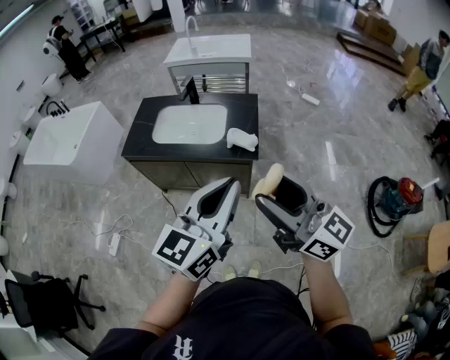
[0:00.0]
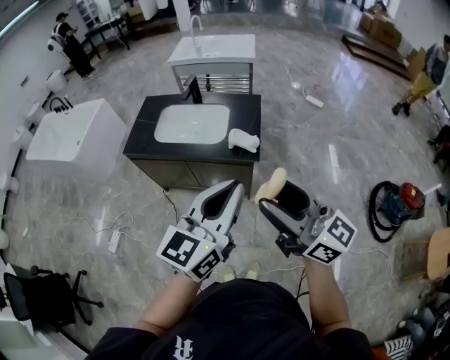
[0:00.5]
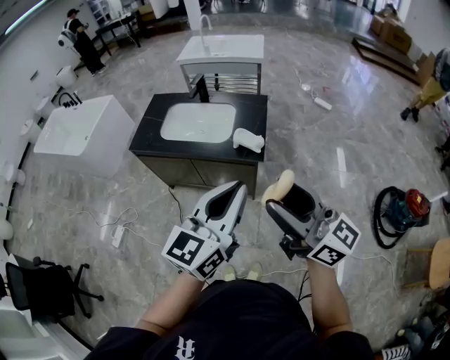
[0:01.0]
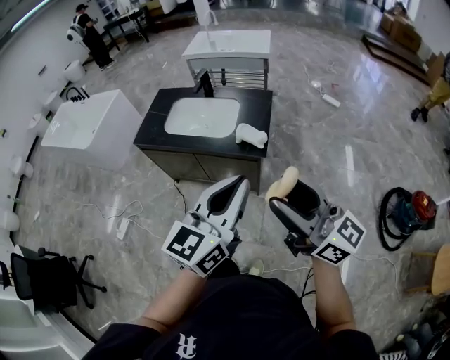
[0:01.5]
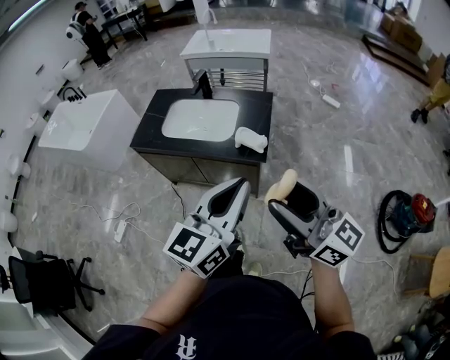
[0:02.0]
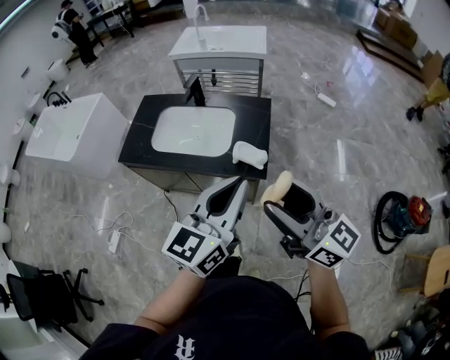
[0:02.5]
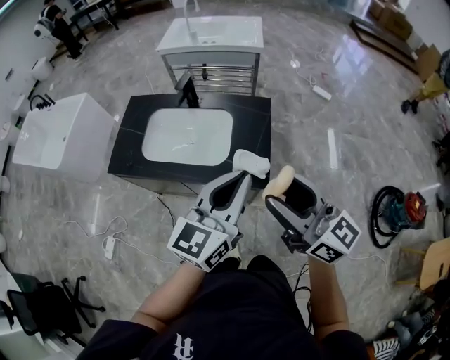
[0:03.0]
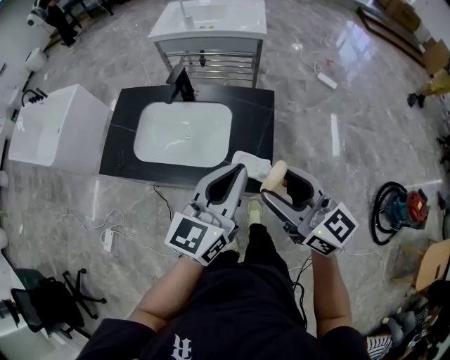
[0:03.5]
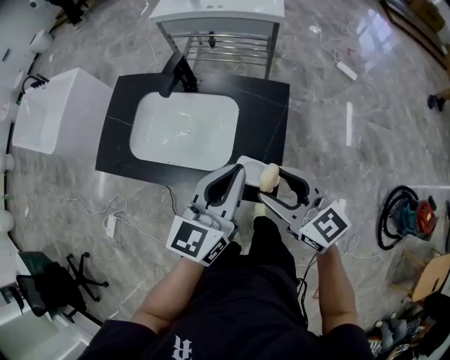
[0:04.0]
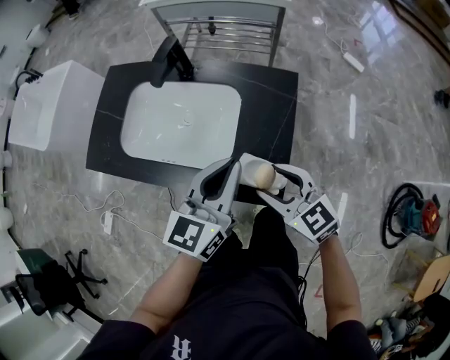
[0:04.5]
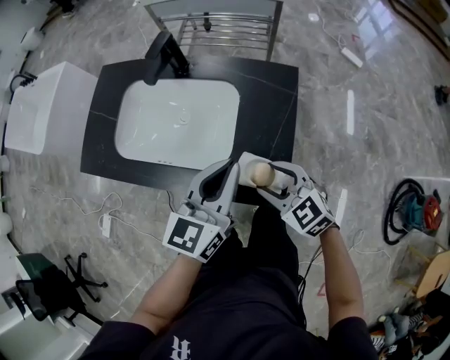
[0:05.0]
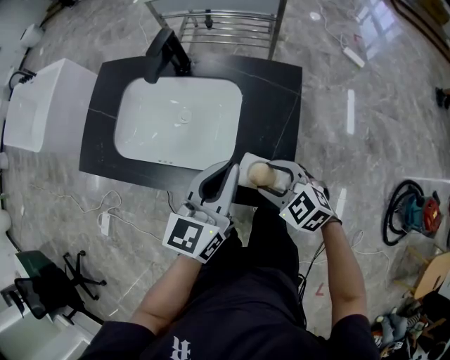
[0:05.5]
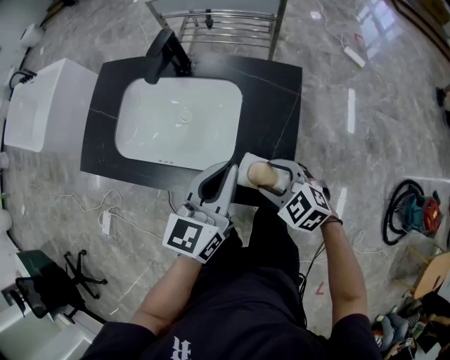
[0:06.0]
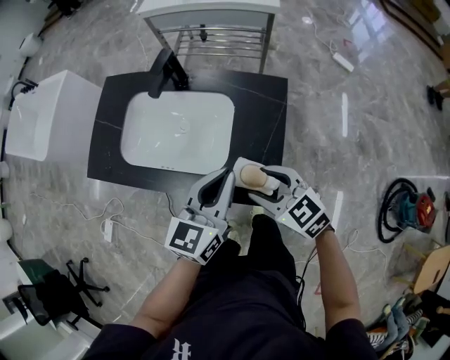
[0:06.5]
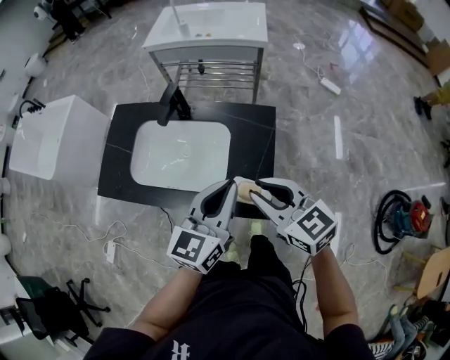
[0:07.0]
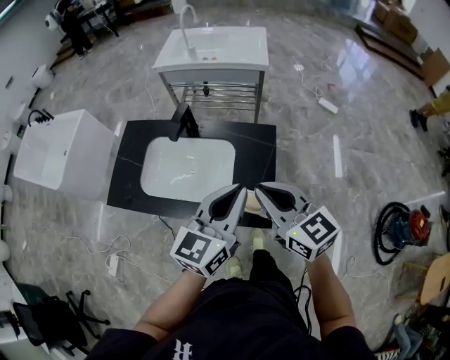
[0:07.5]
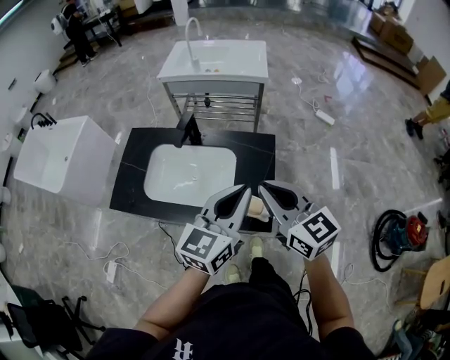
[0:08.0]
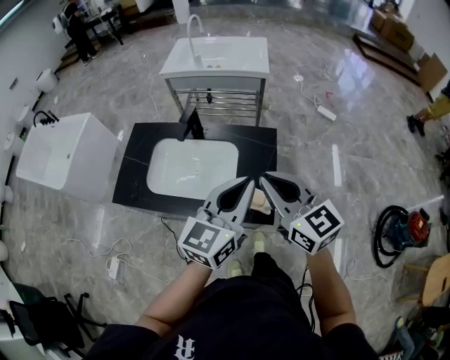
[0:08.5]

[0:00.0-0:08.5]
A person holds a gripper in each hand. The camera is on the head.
0:00.0 to 0:02.0: The grippers both shift to the right by about 5 cm.
0:02.0 to 0:04.0: Both grippers move forward and downward, roughly 40 cm. The right gripper changes its angle by approximately 30 degrees.
0:04.0 to 0:06.5: Both grippers move downward, about 10 cm. The right gripper rotates approximately 20 degrees.
0:06.5 to 0:08.5: The grippers both shift upward by approximately 20 cm. The right gripper rotates approximately 30 degrees, and closes its fingers.

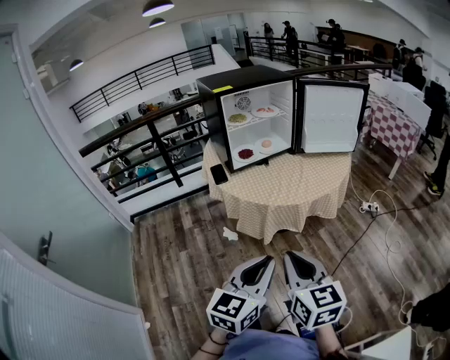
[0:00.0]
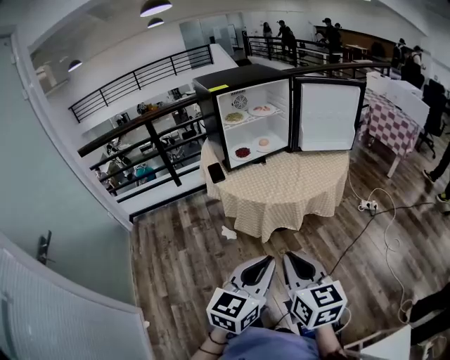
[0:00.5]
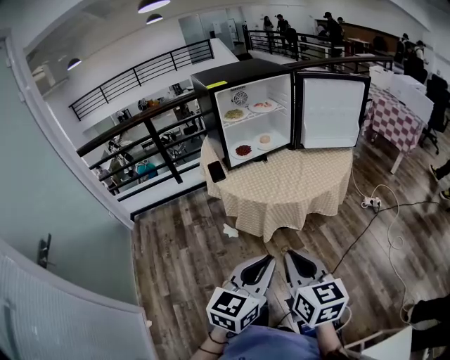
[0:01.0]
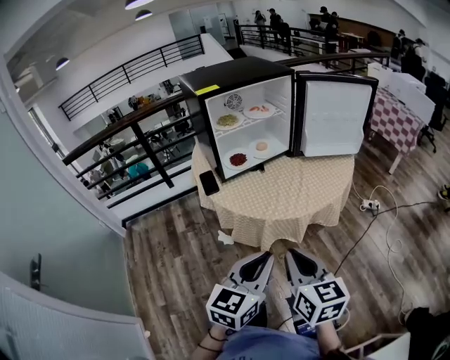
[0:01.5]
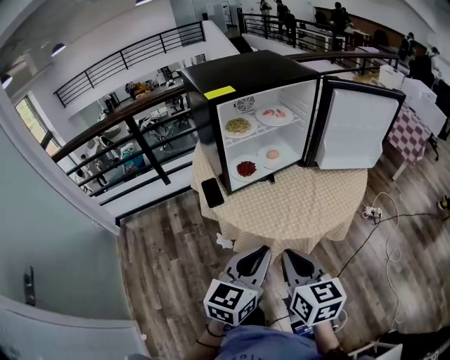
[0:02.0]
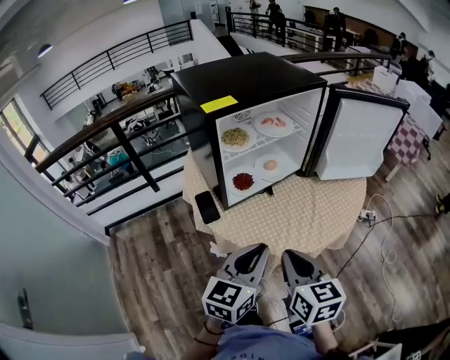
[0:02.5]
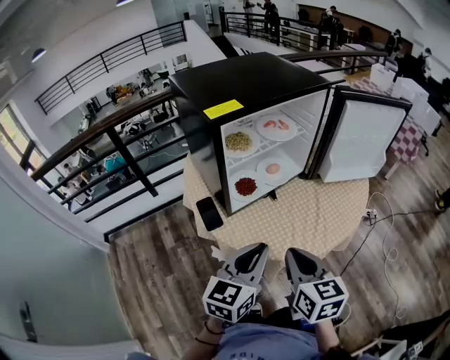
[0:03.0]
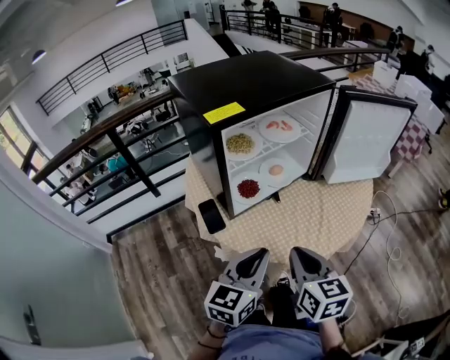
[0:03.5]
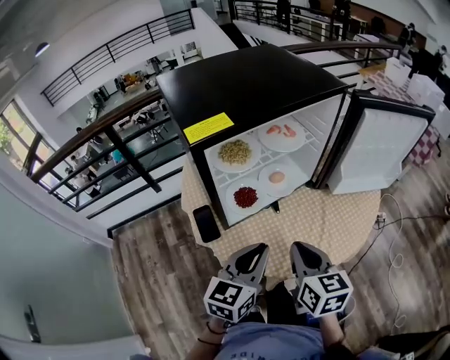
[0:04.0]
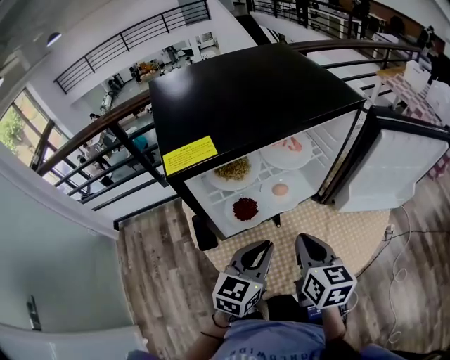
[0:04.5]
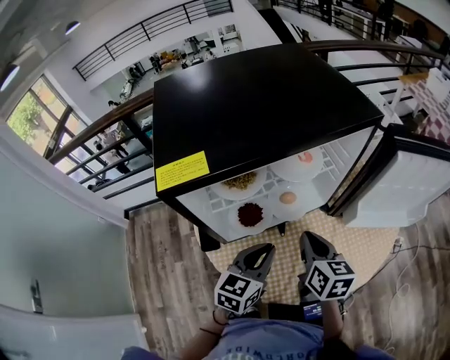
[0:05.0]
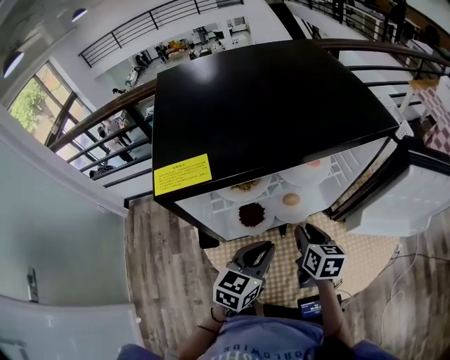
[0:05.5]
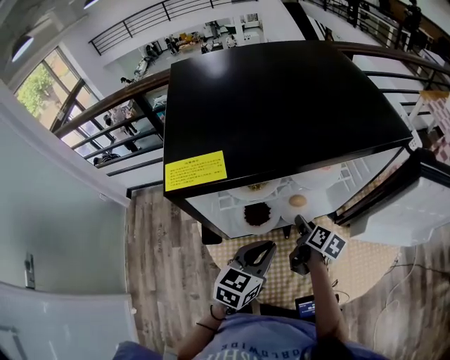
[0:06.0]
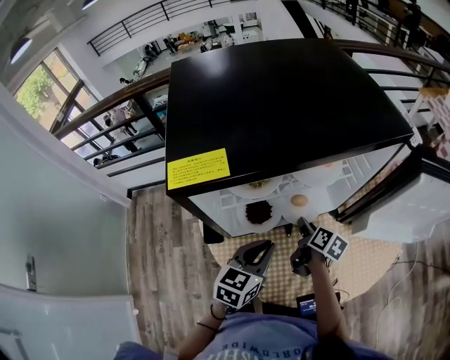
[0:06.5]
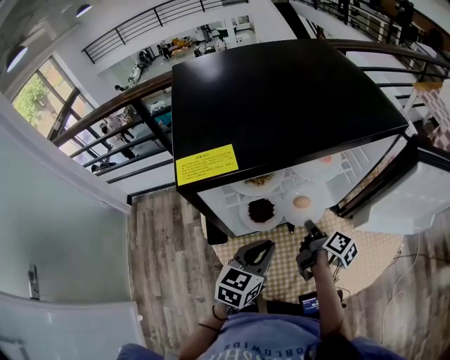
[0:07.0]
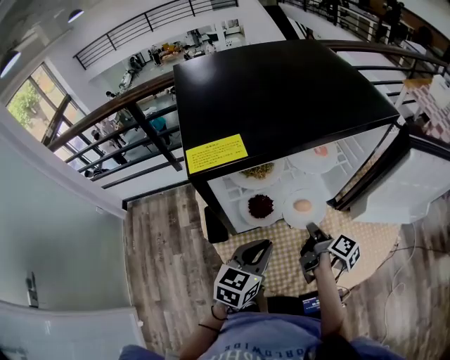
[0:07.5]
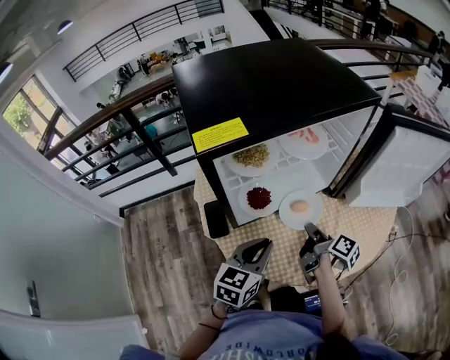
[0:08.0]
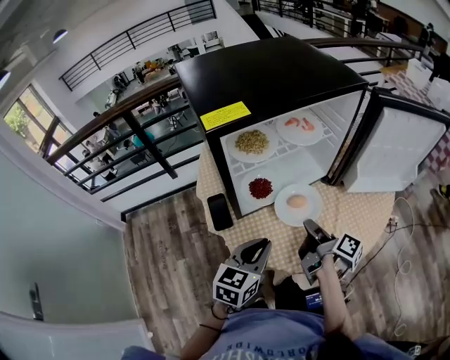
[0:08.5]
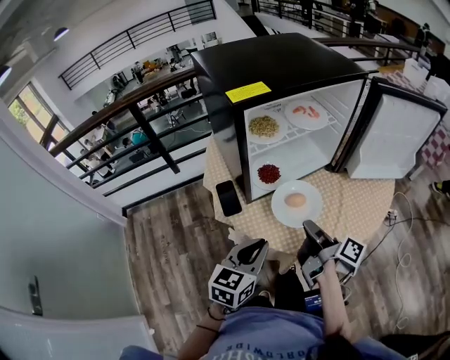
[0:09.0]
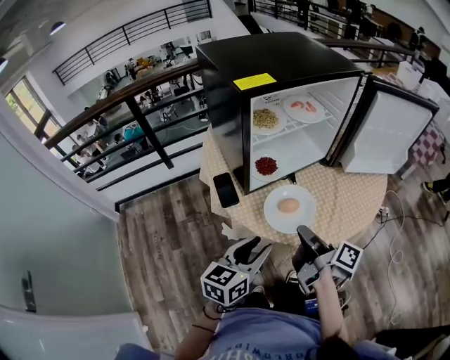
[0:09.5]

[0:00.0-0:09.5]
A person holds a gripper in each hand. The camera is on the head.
0:00.0 to 0:02.0: The grippers both shift forward by approximately 25 cm.
0:02.0 to 0:04.0: The grippers both shift forward by about 20 cm.
0:04.0 to 0:05.5: The right gripper travels forward and downward by approximately 25 cm. Meanwhile the left gripper shifts about 15 cm forward and downward.
0:05.5 to 0:07.5: The left gripper ends up roughly 5 cm from where it was; the right gripper twists about 50 degrees clockwise, seen from behind, and opens, then closes once more.
0:07.5 to 0:09.5: The left gripper goes some 20 cm backward, and opens up; the right gripper is displaced backward and upward by approximately 25 cm.

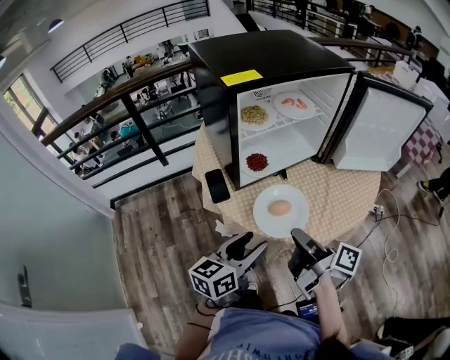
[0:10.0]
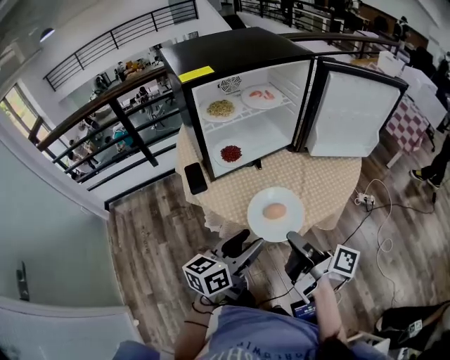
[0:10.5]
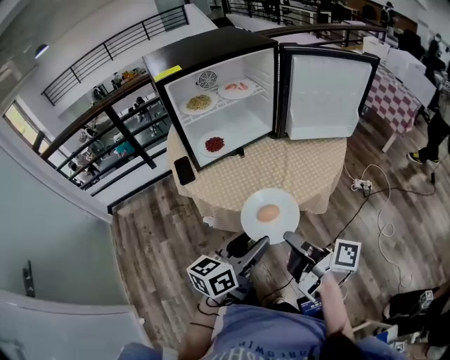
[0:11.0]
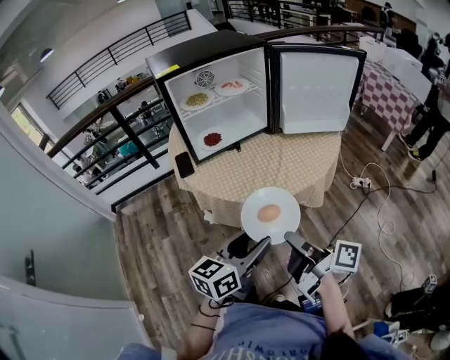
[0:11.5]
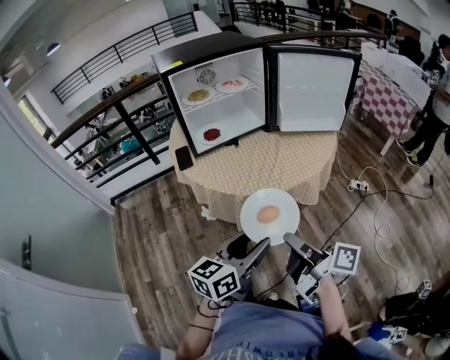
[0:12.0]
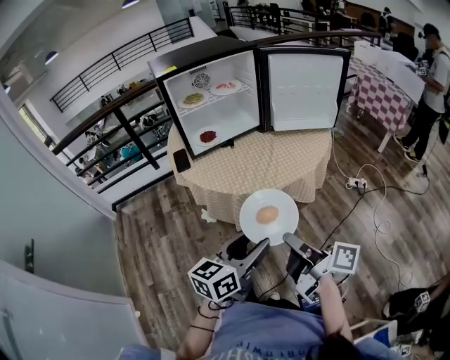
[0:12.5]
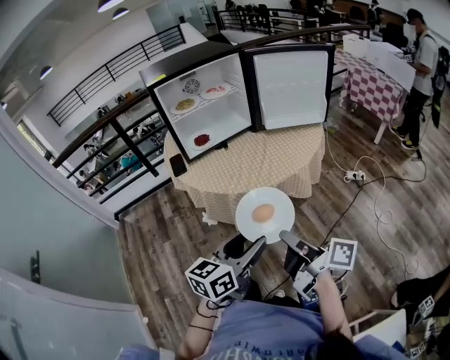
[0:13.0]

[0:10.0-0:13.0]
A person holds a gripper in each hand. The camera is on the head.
0:10.0 to 0:11.5: The right gripper shifts some 25 cm backward and to the right; the left gripper shifts approximately 25 cm to the right and backward.
0:11.5 to 0:13.0: The grippers both shift backward by roughly 10 cm.

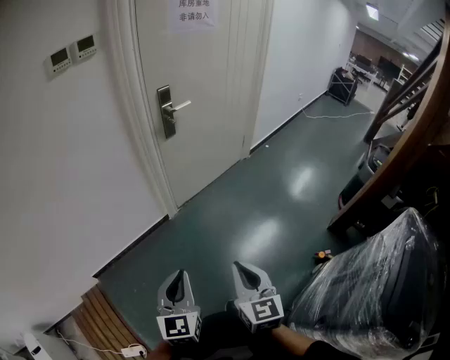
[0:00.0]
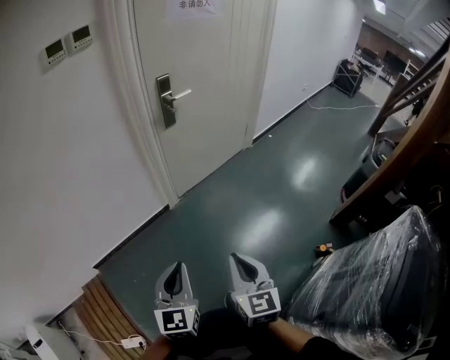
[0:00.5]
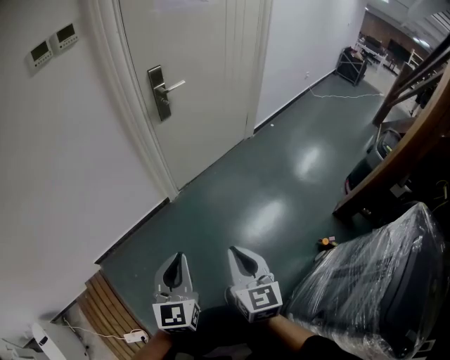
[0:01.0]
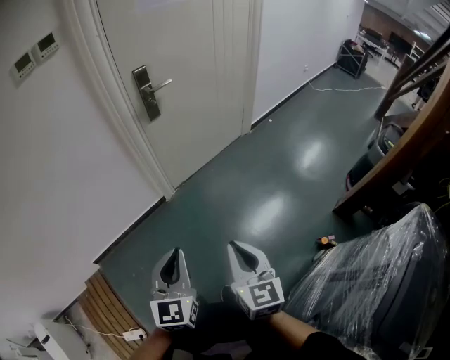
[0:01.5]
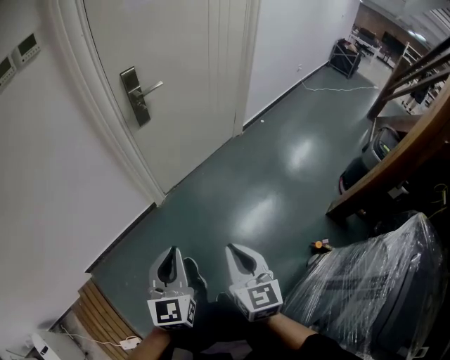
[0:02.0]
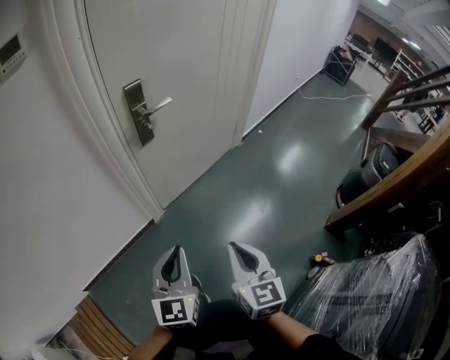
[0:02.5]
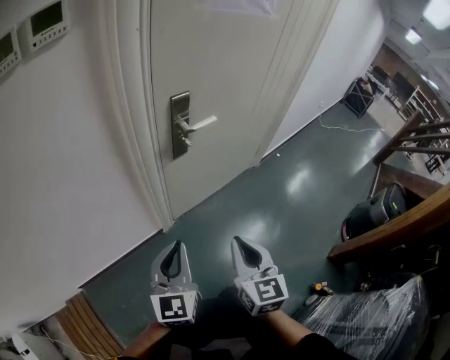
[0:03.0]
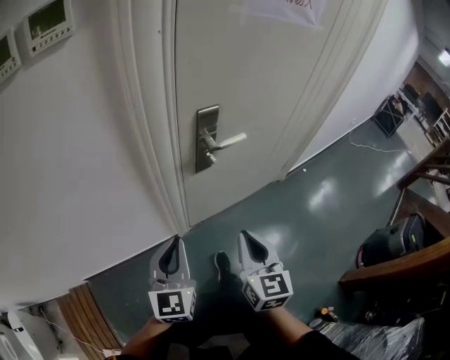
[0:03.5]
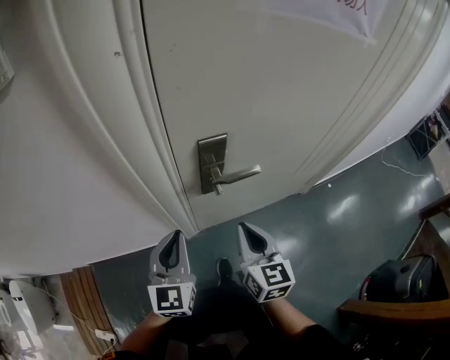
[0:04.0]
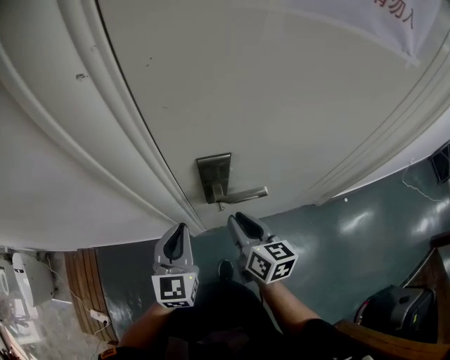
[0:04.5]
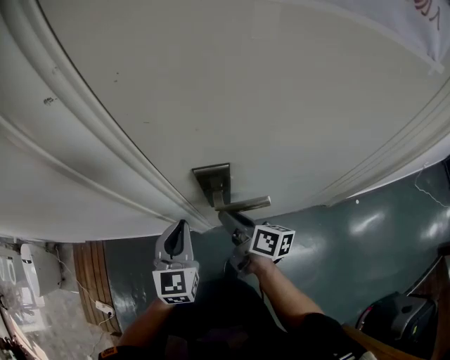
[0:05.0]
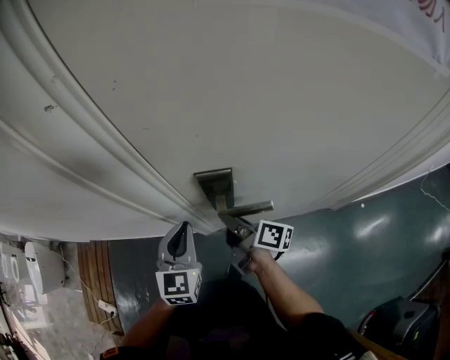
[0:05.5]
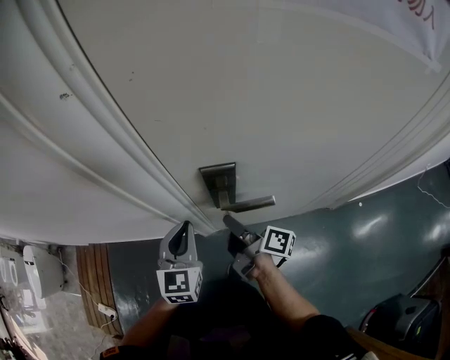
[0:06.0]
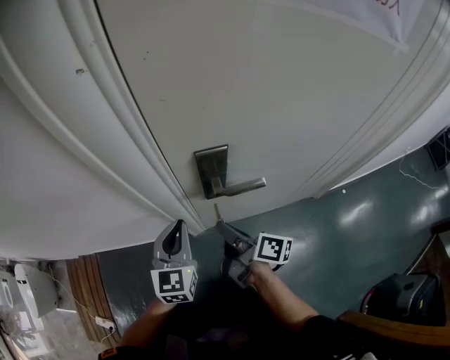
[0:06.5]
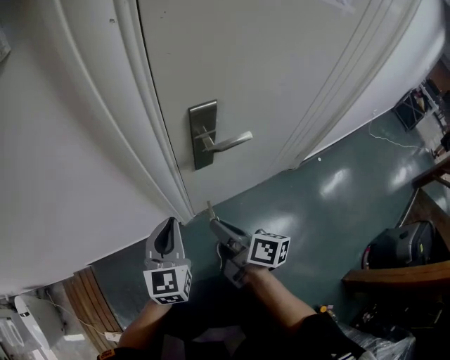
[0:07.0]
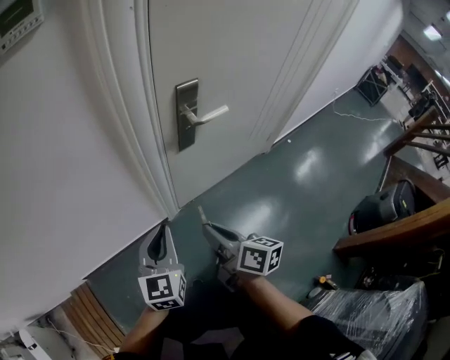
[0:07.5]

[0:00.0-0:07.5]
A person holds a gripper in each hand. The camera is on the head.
0:00.0 to 0:02.0: The grippers both shift forward and to the right by approximately 15 cm.
0:02.0 to 0:04.0: The pair of grippers is taken forward, some 50 cm. The left gripper turns by some 20 degrees; the right gripper swivels some 20 degrees.
0:04.0 to 0:05.5: The right gripper changes place by some 15 cm, and rolls clockwise, seen from behind, by approximately 60 degrees. The left gripper shifts by some 10 cm.
0:05.5 to 0:07.5: The left gripper ends up about 25 cm from where it was, and rotates about 30 degrees, while the right gripper changes place by roughly 30 cm, and swivels roughly 40 degrees.
